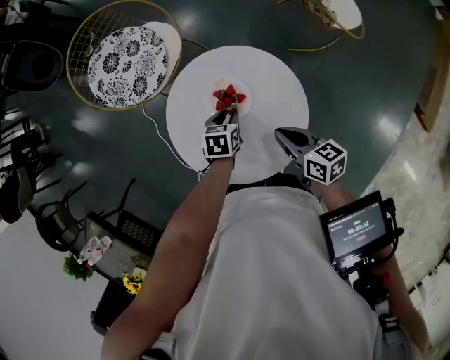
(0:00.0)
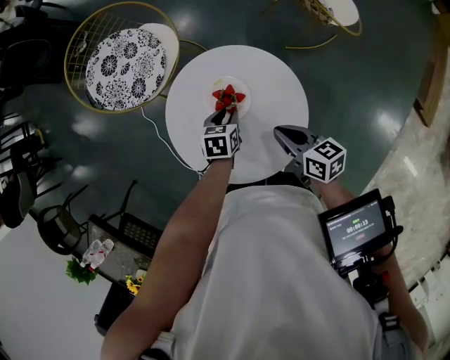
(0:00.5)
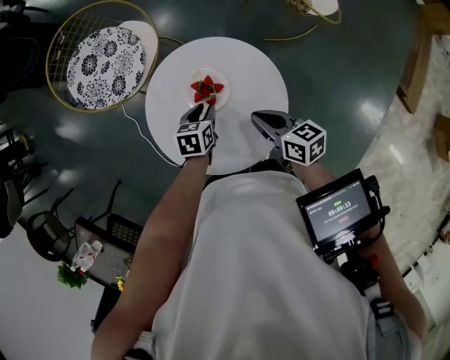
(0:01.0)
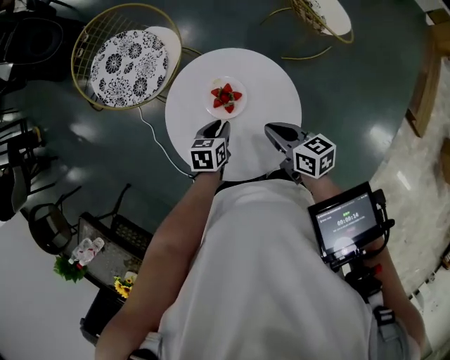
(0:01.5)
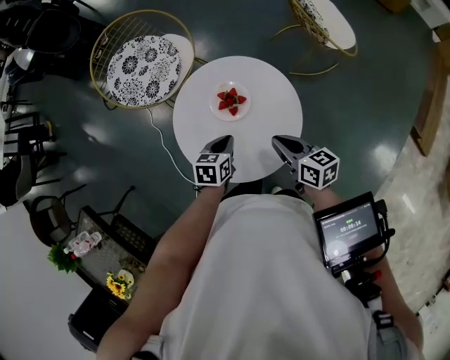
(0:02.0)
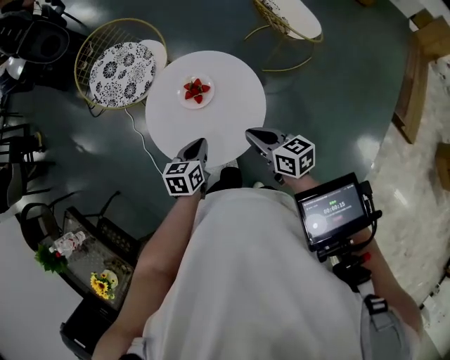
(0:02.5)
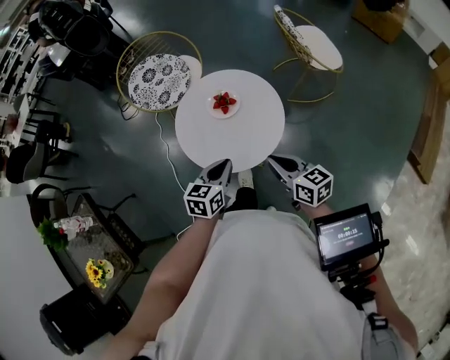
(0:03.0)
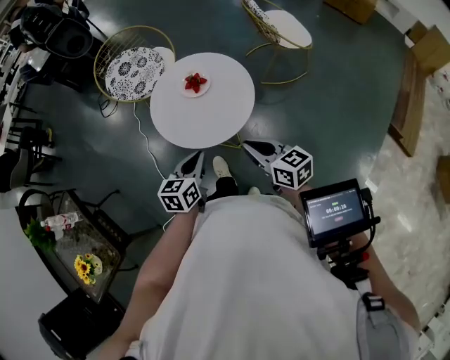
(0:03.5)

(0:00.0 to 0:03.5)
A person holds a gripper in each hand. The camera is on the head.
0:00.0 - 0:02.0: The left gripper ends up approximately 5 cm from where it was, and closes up.
0:02.0 - 0:03.5: Both grippers move backward and upward, approximately 30 cm. The left gripper rotates some 20 degrees.

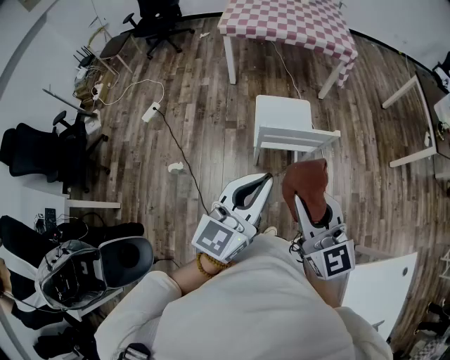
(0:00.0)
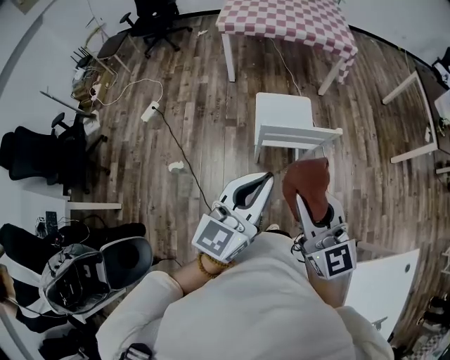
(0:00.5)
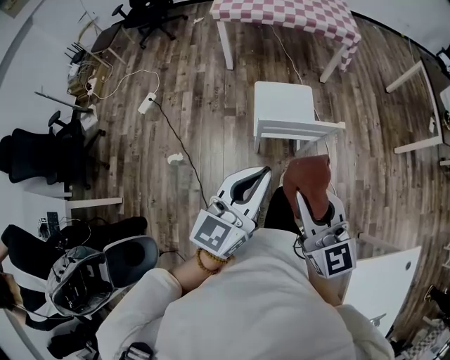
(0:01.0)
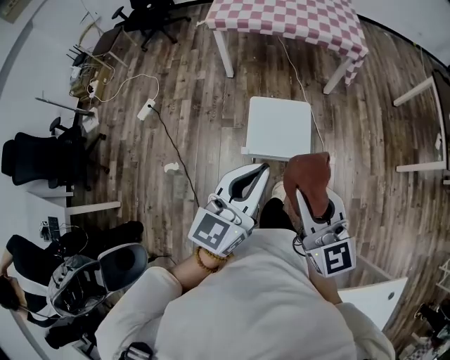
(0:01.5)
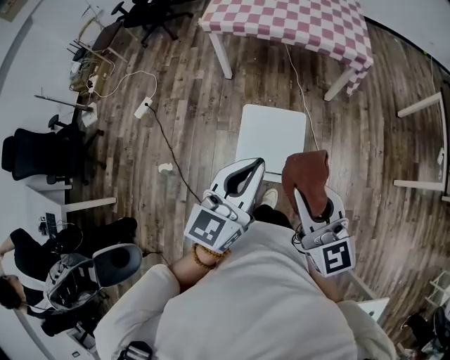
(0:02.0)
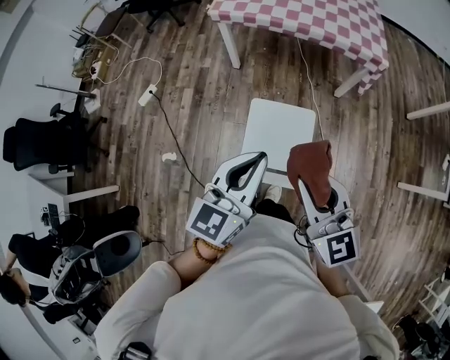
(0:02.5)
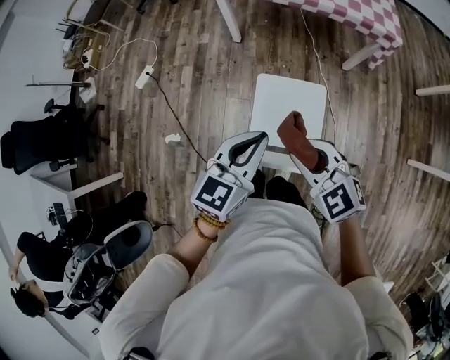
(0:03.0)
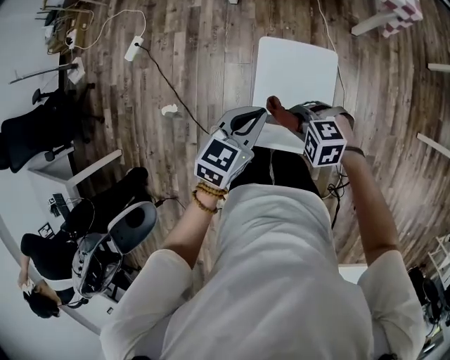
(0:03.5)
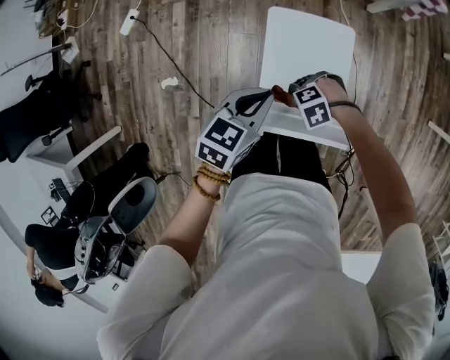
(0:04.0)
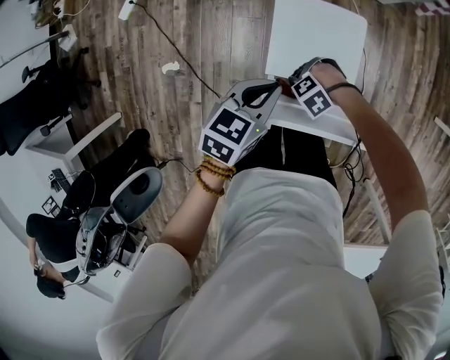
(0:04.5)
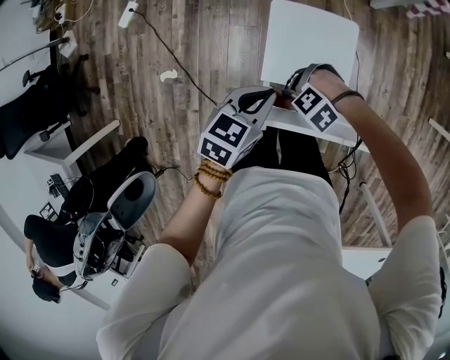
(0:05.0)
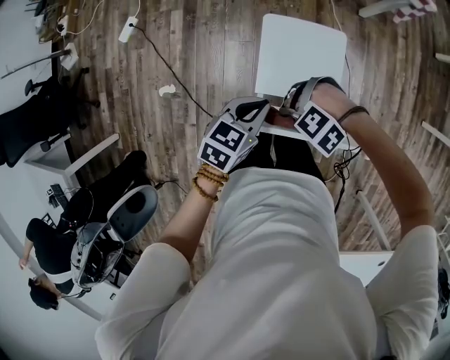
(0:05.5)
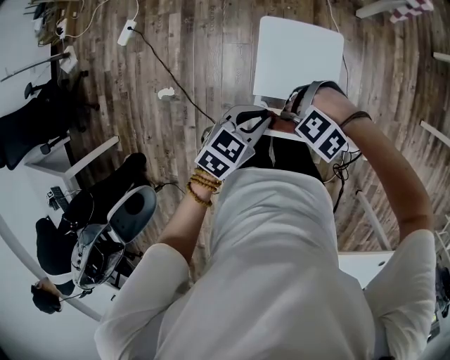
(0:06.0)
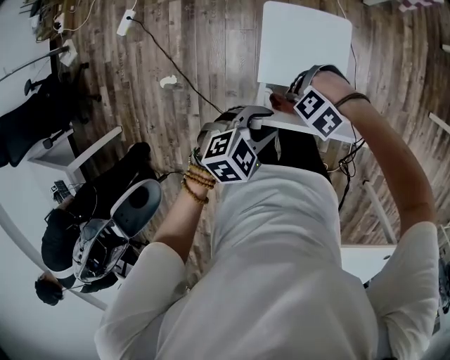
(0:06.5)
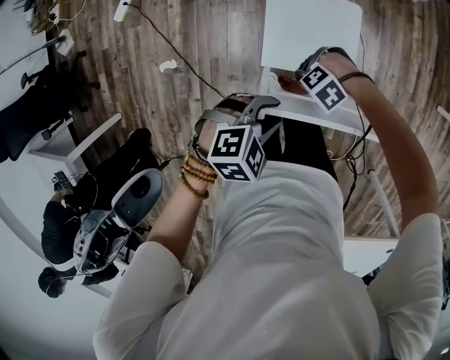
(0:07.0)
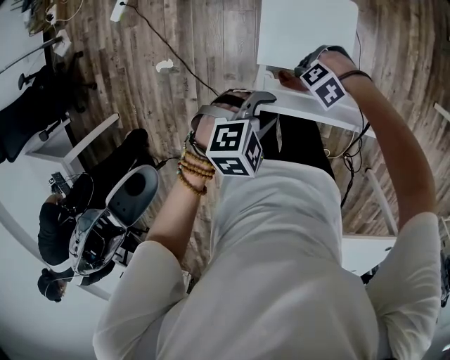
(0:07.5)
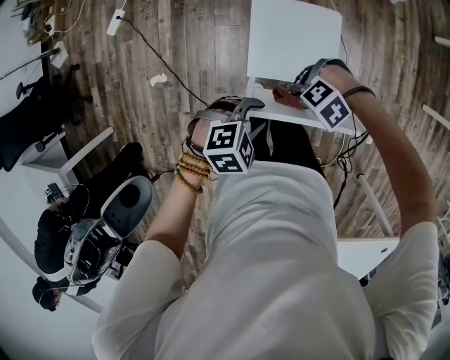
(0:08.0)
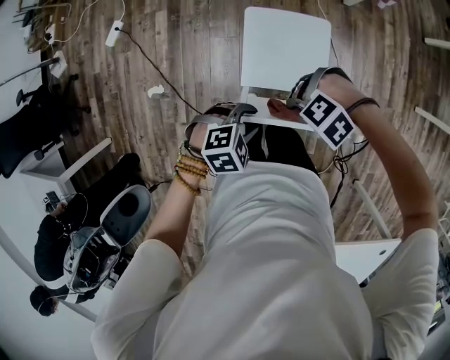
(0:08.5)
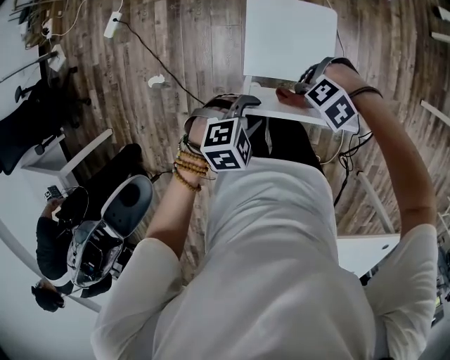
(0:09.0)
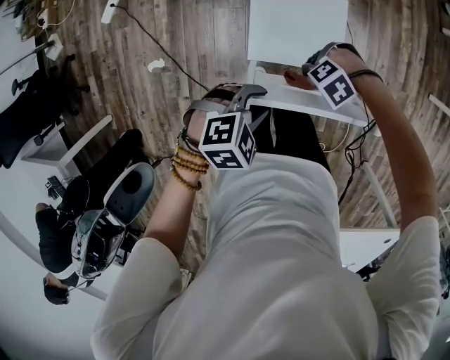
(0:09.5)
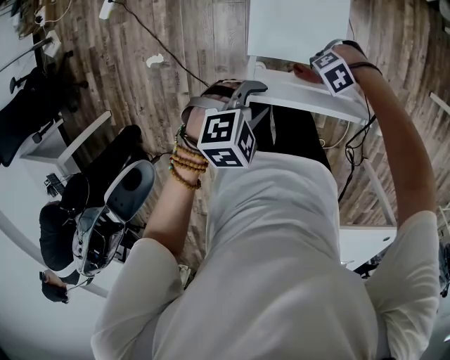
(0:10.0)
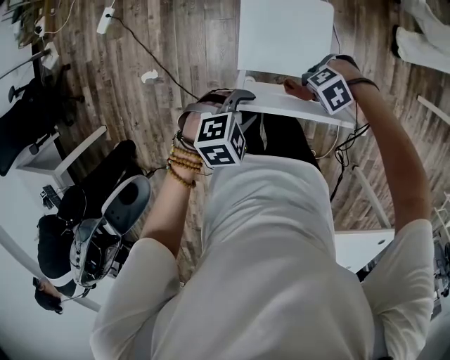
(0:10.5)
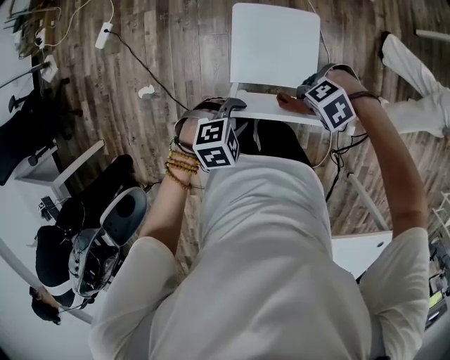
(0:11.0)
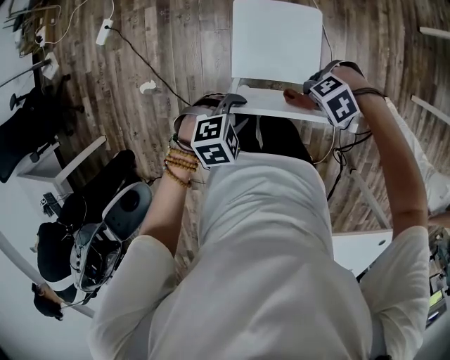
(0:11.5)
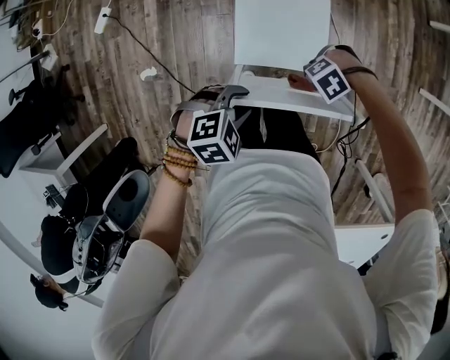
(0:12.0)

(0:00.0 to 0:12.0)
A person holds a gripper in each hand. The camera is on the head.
0:00.0 - 0:02.0: The left gripper is displaced forward by approximately 30 cm, while the right gripper heads forward and to the right, covering approximately 30 cm.
0:02.0 - 0:04.0: The right gripper goes about 50 cm downward, and tilts its fingers about 60 degrees downward. The left gripper moves downward, about 30 cm, and tilts its fingers about 40 degrees downward.
0:04.0 - 0:06.0: The right gripper travels upward by some 10 cm, and swivels about 30 degrees.
0:06.0 - 0:08.0: The left gripper heads forward, covering some 5 cm, turns by roughly 40 degrees, and opens. Meanwhile the right gripper is displaced downward by some 5 cm.
0:08.0 - 0:10.0: The right gripper heads downward, covering approximately 10 cm.
0:10.0 - 0:12.0: The right gripper travels upward by roughly 5 cm.

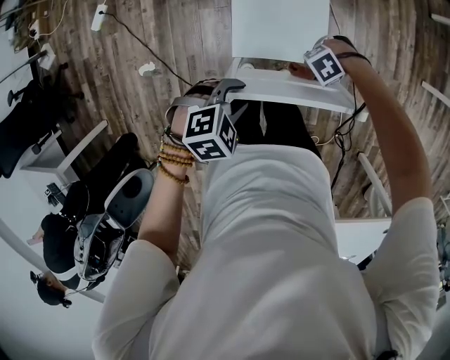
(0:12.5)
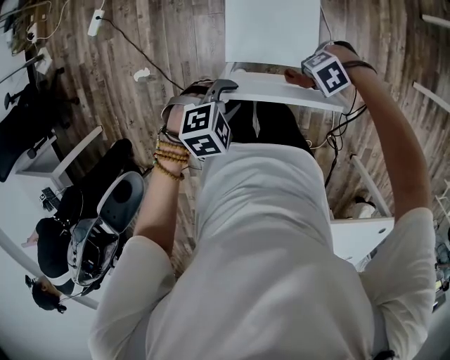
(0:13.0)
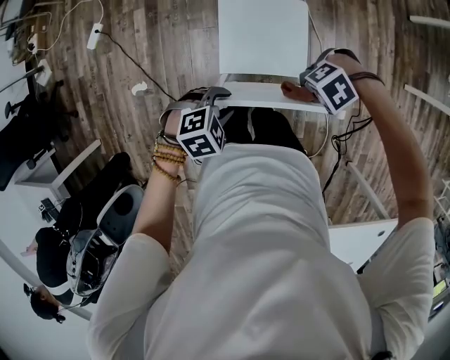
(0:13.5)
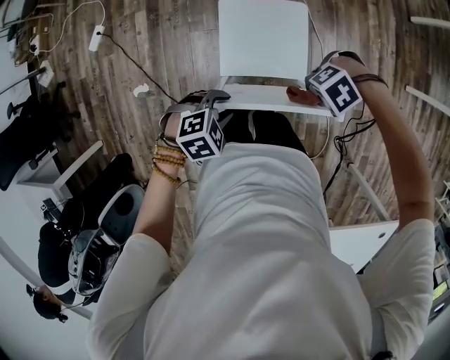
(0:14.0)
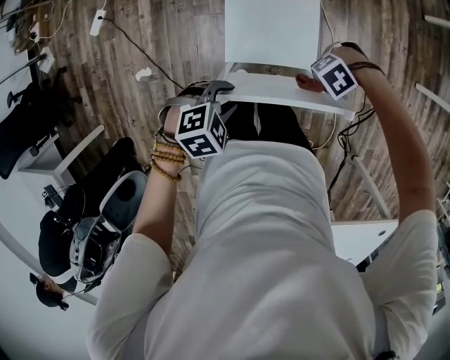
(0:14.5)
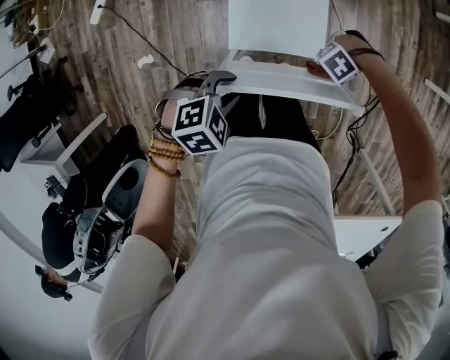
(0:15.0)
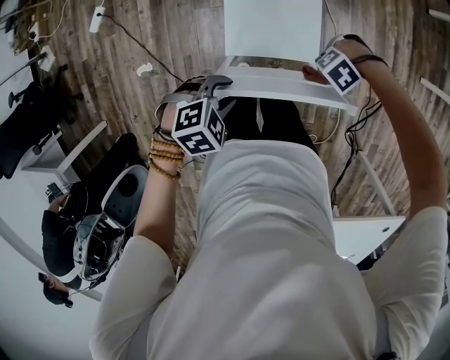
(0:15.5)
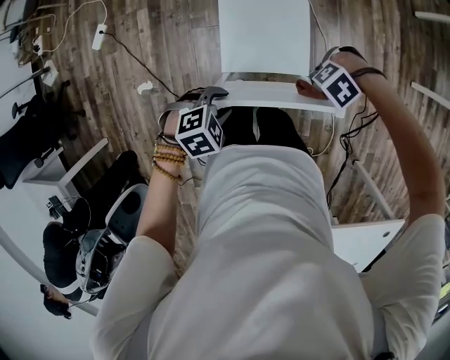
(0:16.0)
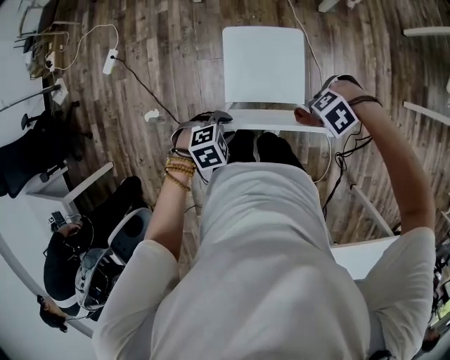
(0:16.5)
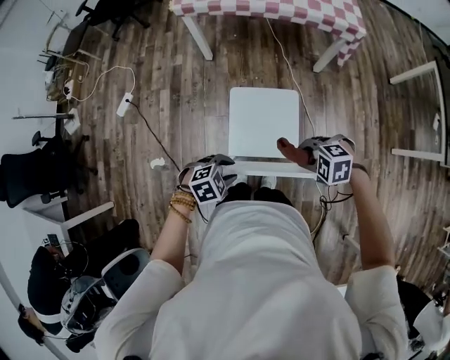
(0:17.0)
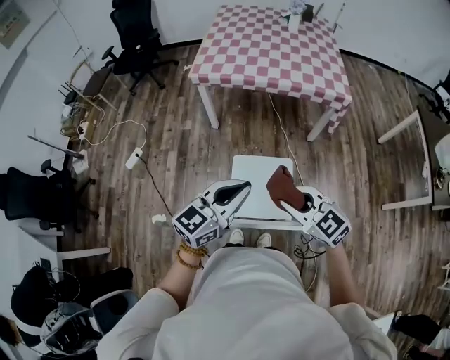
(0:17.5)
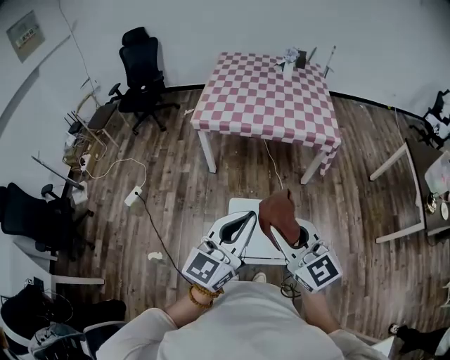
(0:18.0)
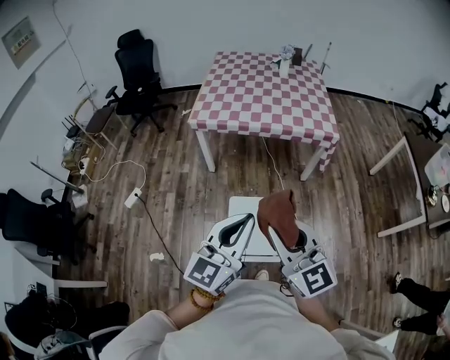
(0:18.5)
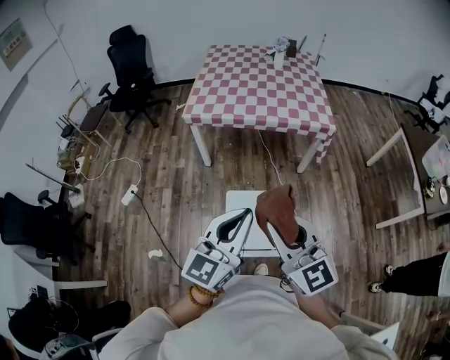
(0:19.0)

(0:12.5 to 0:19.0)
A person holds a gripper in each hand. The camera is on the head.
0:12.5 - 0:14.5: The right gripper shifts approximately 5 cm upward.
0:14.5 - 0:17.0: The right gripper moves upward, some 15 cm, and turns by approximately 50 degrees.
0:17.0 - 0:19.0: Both grippers travel together upward, approximately 40 cm. The left gripper tips its fingers upward by some 70 degrees, and closes, while the right gripper points its fingers approximately 60 degrees further upward.

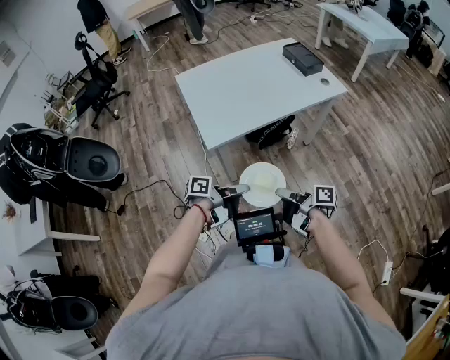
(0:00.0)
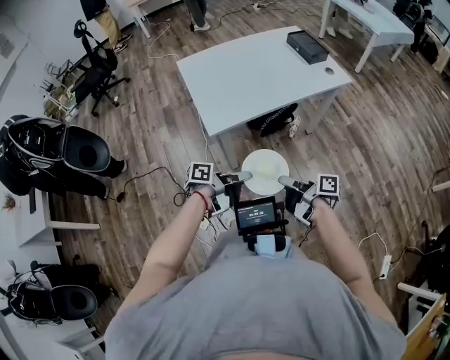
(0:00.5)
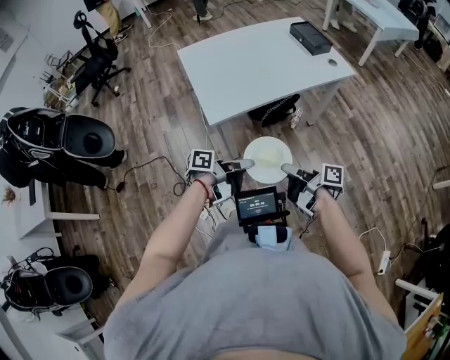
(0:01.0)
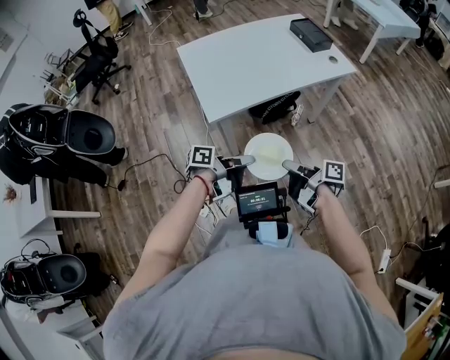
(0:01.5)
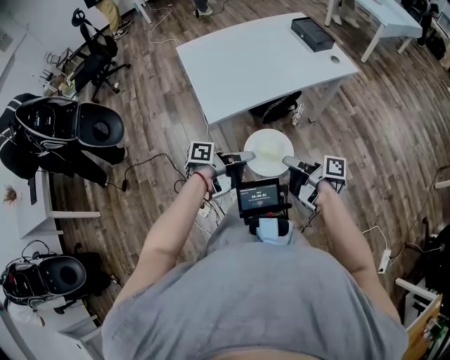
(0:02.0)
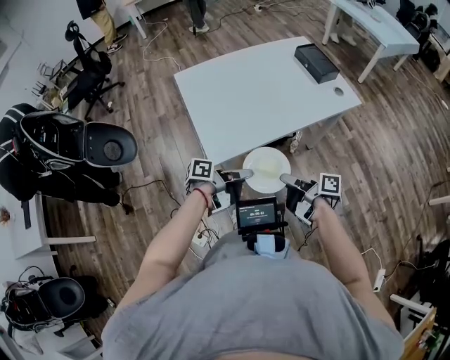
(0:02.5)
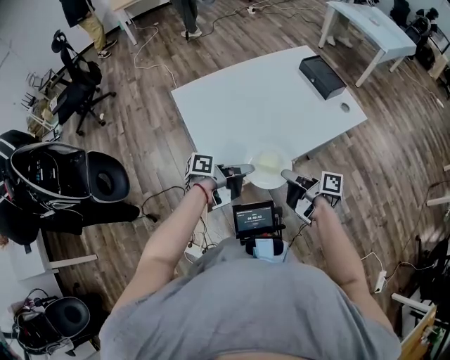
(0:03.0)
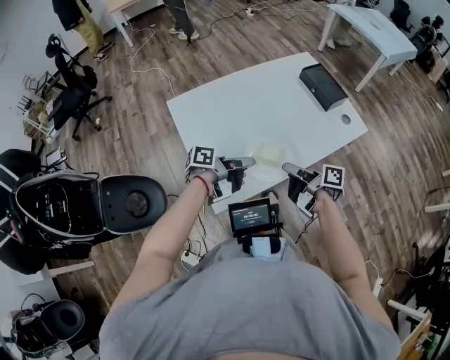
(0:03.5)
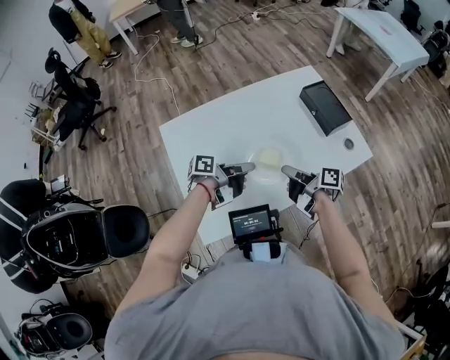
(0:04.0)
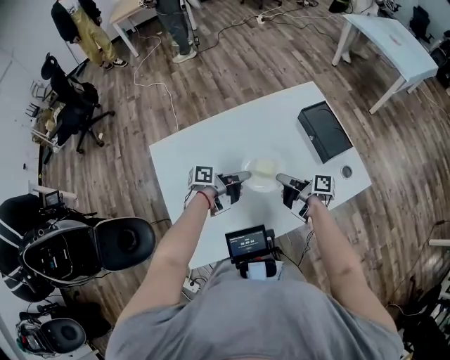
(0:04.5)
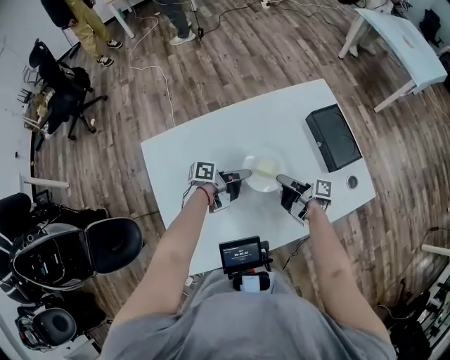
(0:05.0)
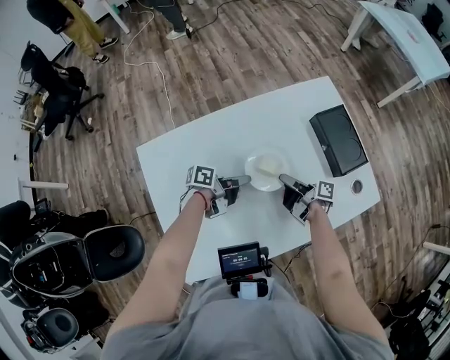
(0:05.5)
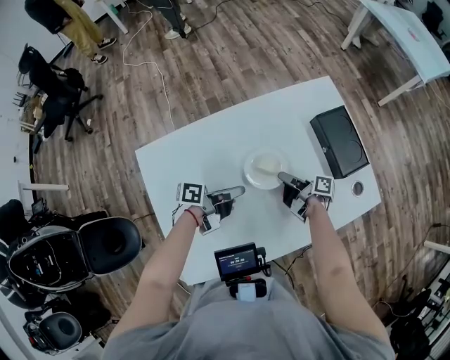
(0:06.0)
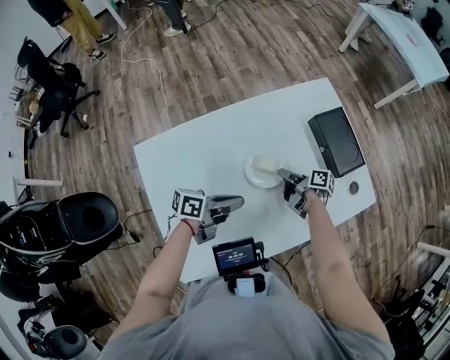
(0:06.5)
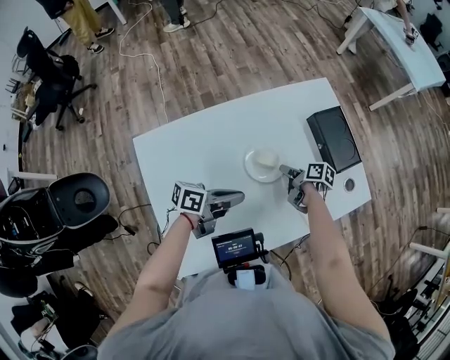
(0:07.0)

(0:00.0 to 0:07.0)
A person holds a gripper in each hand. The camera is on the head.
0:00.0 - 0:02.0: The grippers make only small movements.
0:02.0 - 0:03.5: The grippers both shift forward by roughly 30 cm.
0:03.5 - 0:05.0: The left gripper heads forward, covering approximately 30 cm; the right gripper goes approximately 30 cm forward and downward.
0:05.0 - 0:07.0: The left gripper goes about 10 cm backward and upward, and rotates about 20 degrees, while the right gripper moves downward, about 5 cm, and tips its fingers downward by approximately 30 degrees.
